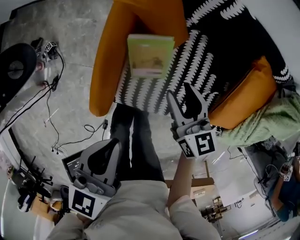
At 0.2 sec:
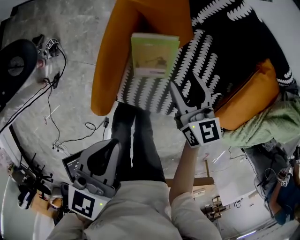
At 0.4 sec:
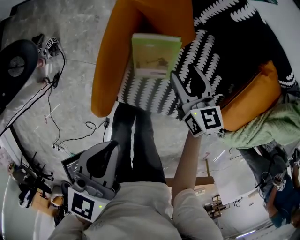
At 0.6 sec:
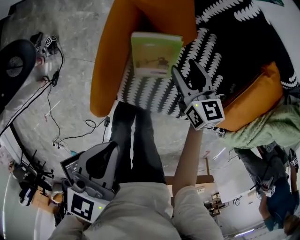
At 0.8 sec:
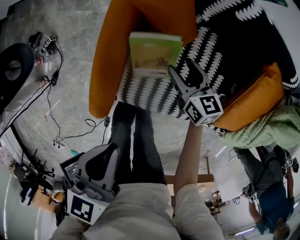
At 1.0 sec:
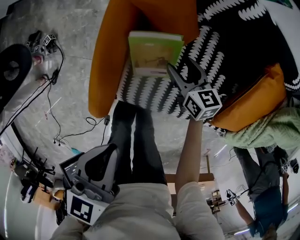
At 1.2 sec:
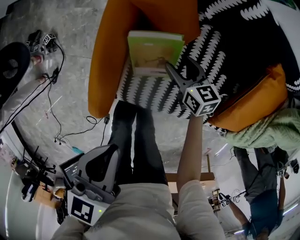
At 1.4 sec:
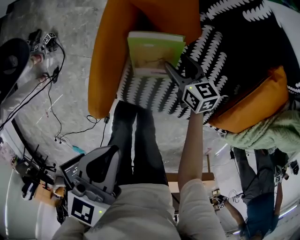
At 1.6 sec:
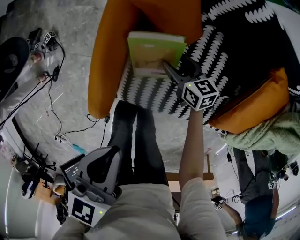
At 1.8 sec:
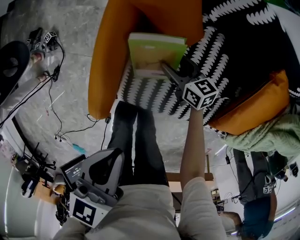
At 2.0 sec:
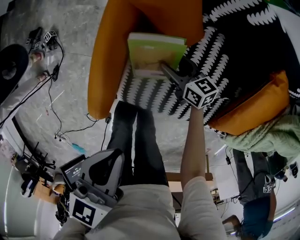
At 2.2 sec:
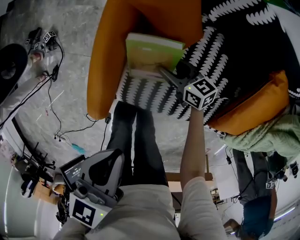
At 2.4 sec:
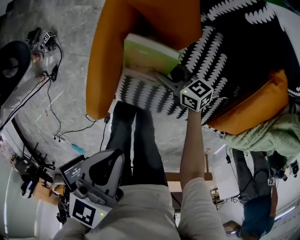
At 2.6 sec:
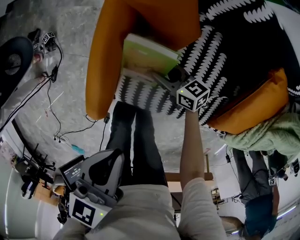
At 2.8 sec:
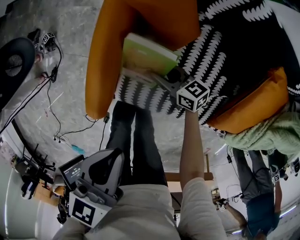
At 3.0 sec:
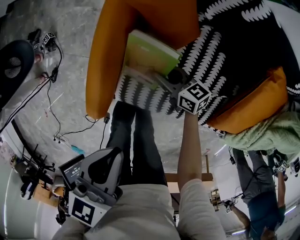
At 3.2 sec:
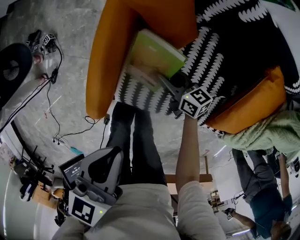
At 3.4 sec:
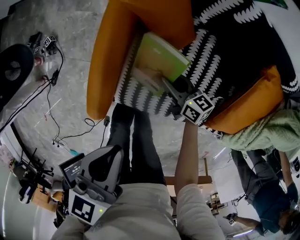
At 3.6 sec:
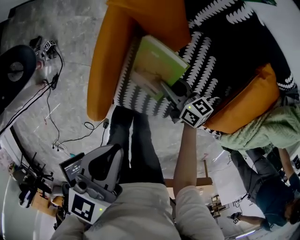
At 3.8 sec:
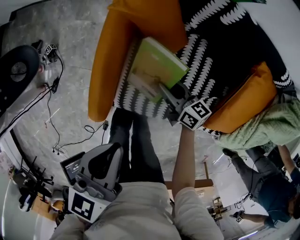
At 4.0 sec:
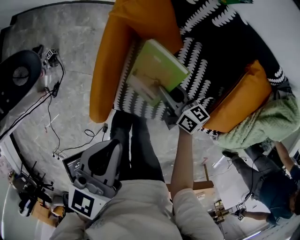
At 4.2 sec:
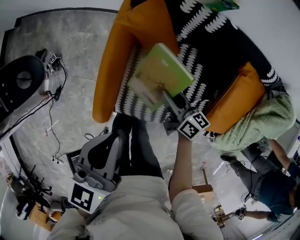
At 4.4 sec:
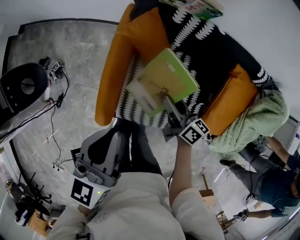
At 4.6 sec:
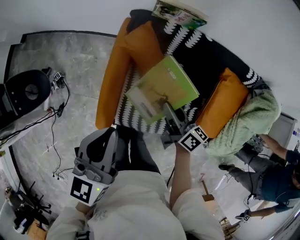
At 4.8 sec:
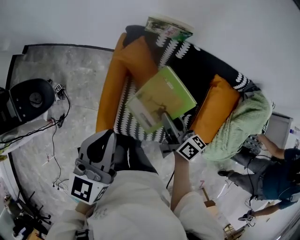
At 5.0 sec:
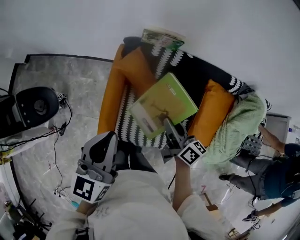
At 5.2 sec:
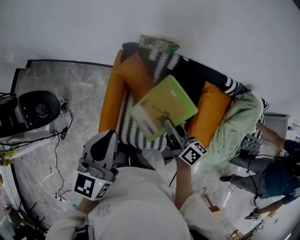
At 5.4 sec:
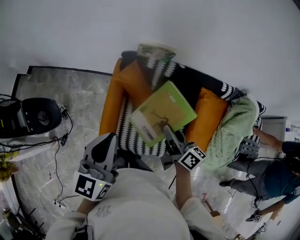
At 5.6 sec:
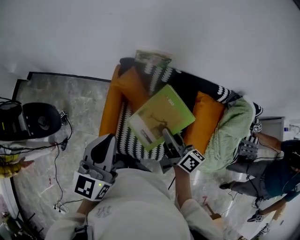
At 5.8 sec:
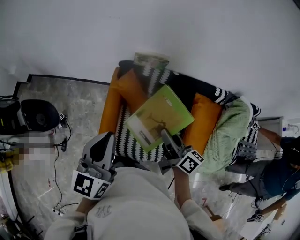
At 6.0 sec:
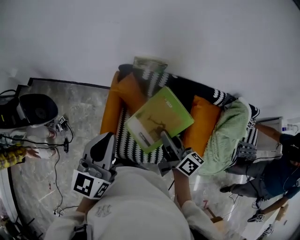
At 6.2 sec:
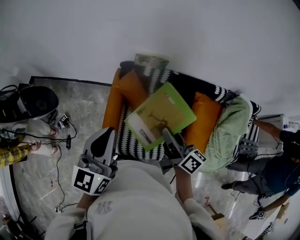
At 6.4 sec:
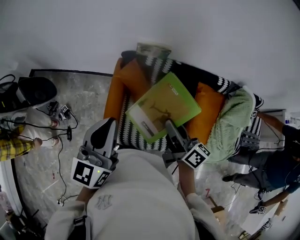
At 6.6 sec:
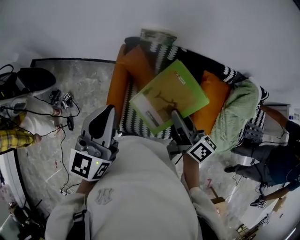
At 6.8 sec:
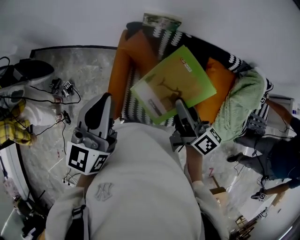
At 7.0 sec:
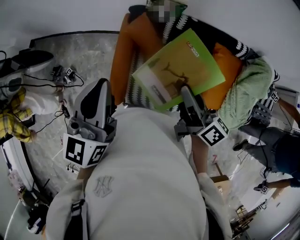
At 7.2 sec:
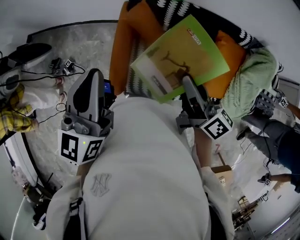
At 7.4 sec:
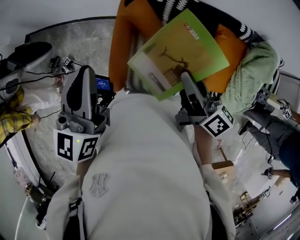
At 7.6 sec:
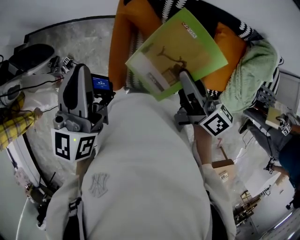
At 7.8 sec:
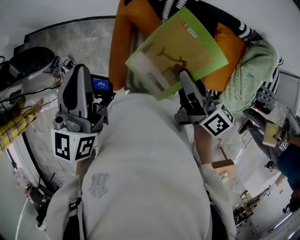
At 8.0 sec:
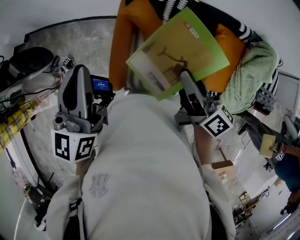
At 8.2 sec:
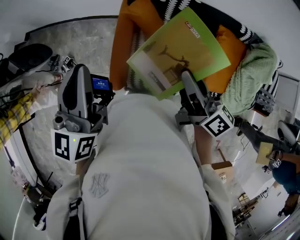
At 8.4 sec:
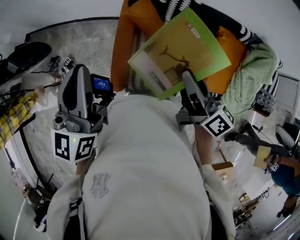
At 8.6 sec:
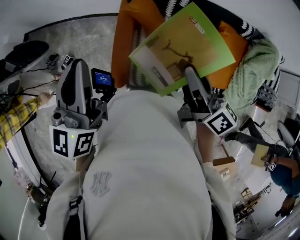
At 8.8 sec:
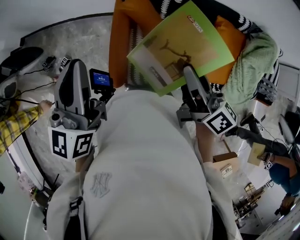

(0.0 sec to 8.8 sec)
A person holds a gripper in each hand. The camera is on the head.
0.0 sec - 1.4 sec: The right gripper is displaced downward by roughly 20 cm, and turns by roughly 20 degrees.
1.4 sec - 3.0 sec: The right gripper closes up.
3.0 sec - 4.4 sec: The left gripper shifts approximately 10 cm upward, and turns by approximately 20 degrees. The right gripper travels upward by about 20 cm, and rotates about 40 degrees.
4.4 sec - 5.8 sec: The left gripper goes roughly 15 cm upward; the right gripper goes roughly 25 cm upward.
5.8 sec - 7.4 sec: The right gripper goes about 5 cm backward and upward, while the left gripper travels to the left by roughly 10 cm.
7.4 sec - 8.8 sec: There are only small adjustments of the grippers.

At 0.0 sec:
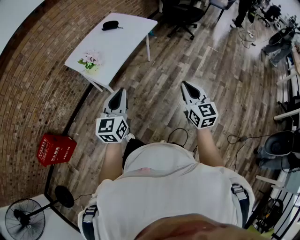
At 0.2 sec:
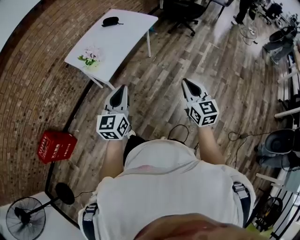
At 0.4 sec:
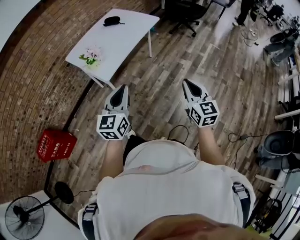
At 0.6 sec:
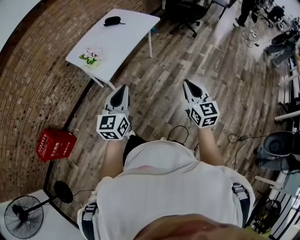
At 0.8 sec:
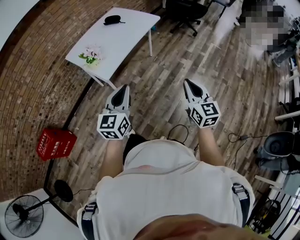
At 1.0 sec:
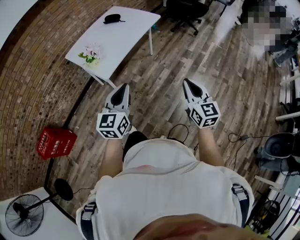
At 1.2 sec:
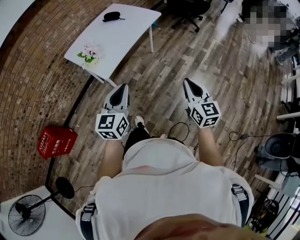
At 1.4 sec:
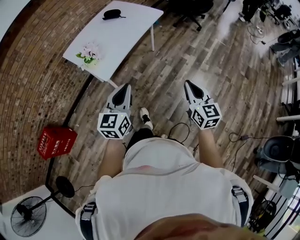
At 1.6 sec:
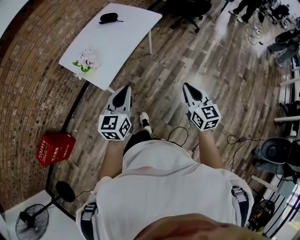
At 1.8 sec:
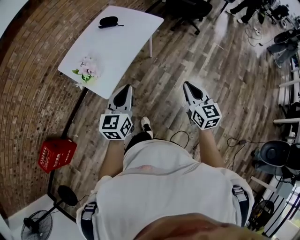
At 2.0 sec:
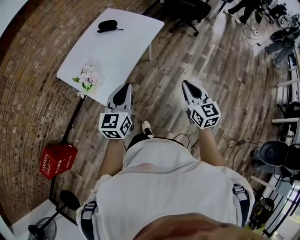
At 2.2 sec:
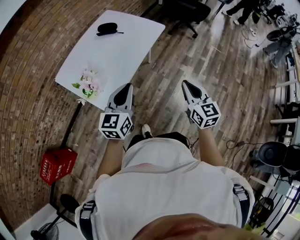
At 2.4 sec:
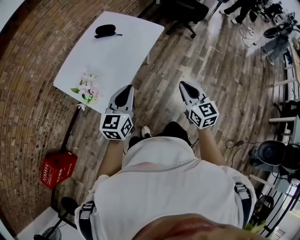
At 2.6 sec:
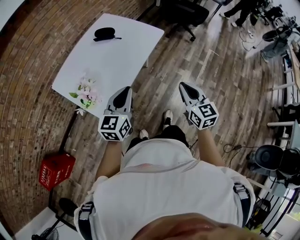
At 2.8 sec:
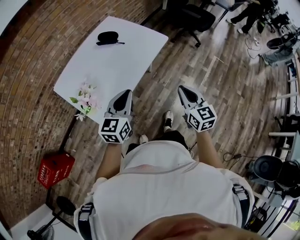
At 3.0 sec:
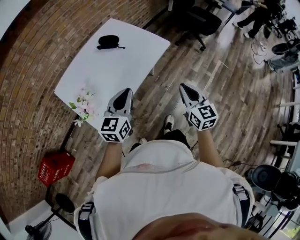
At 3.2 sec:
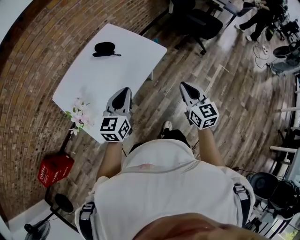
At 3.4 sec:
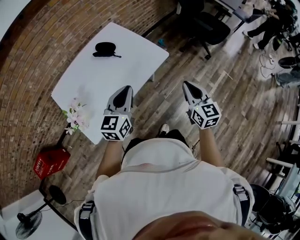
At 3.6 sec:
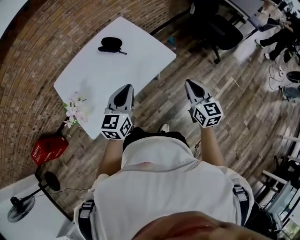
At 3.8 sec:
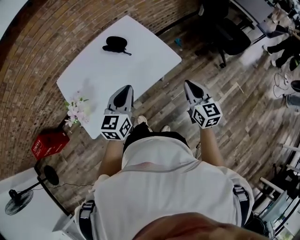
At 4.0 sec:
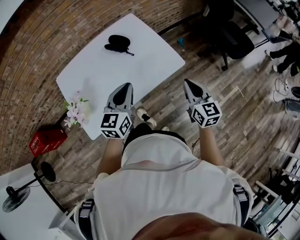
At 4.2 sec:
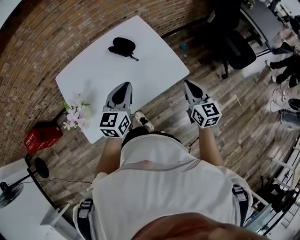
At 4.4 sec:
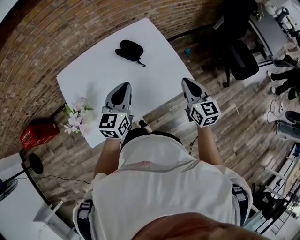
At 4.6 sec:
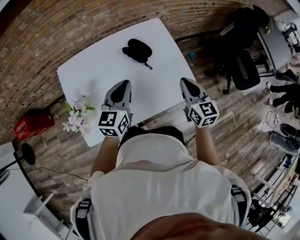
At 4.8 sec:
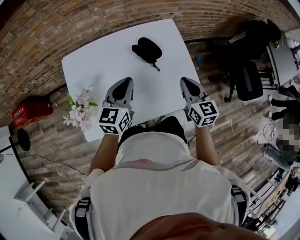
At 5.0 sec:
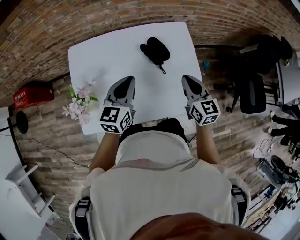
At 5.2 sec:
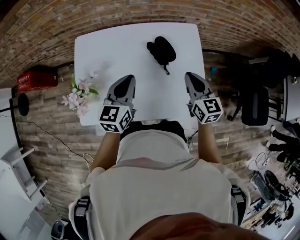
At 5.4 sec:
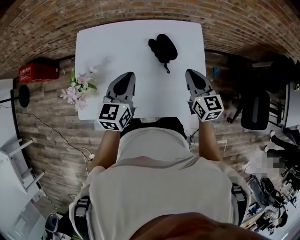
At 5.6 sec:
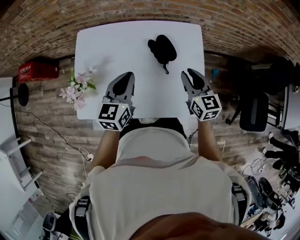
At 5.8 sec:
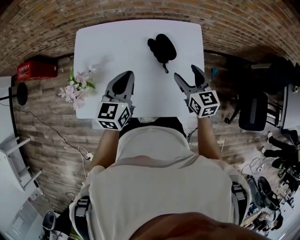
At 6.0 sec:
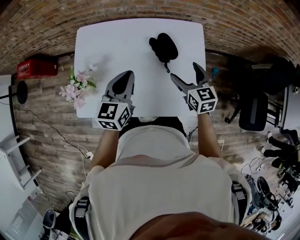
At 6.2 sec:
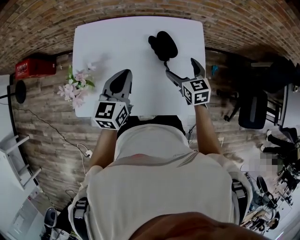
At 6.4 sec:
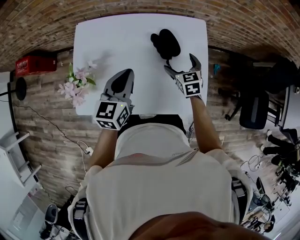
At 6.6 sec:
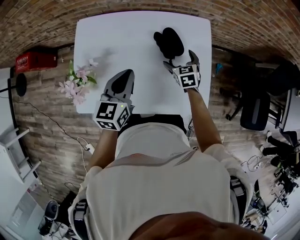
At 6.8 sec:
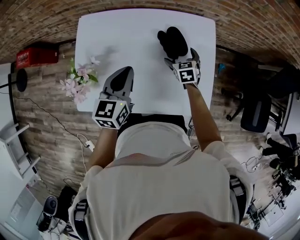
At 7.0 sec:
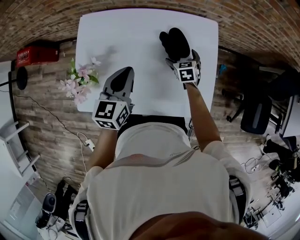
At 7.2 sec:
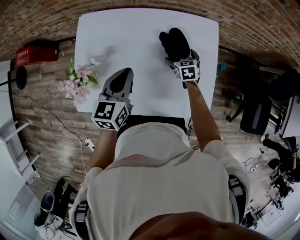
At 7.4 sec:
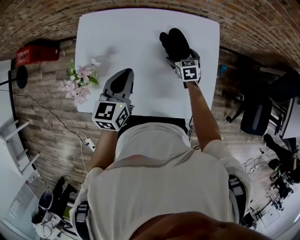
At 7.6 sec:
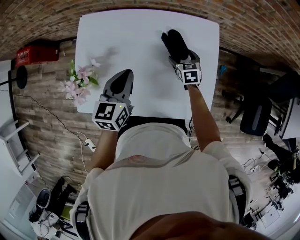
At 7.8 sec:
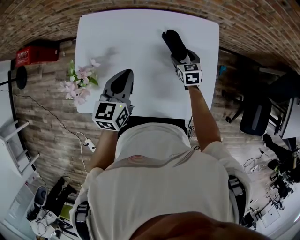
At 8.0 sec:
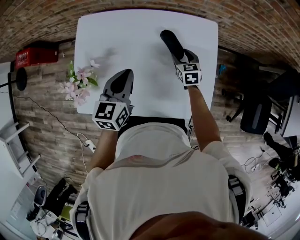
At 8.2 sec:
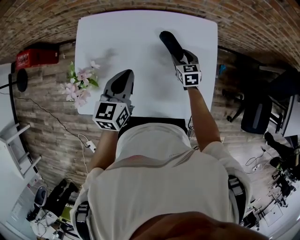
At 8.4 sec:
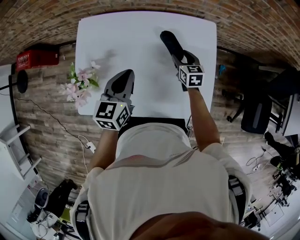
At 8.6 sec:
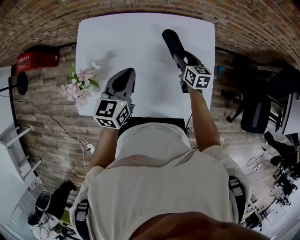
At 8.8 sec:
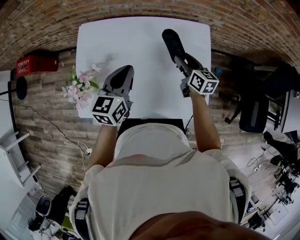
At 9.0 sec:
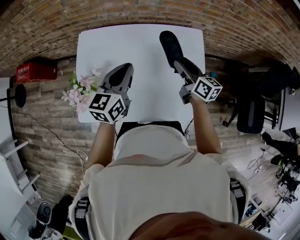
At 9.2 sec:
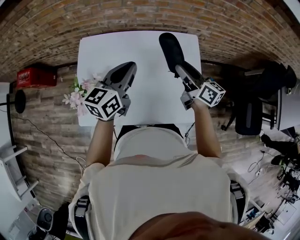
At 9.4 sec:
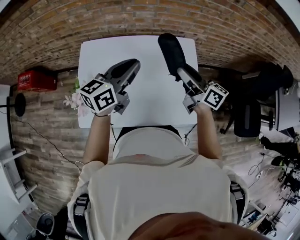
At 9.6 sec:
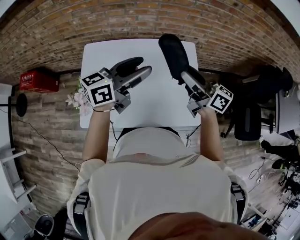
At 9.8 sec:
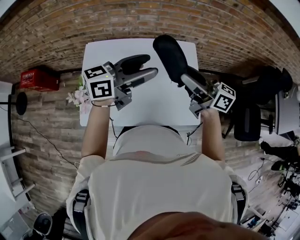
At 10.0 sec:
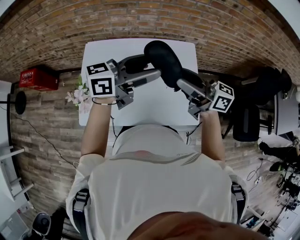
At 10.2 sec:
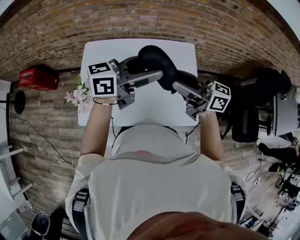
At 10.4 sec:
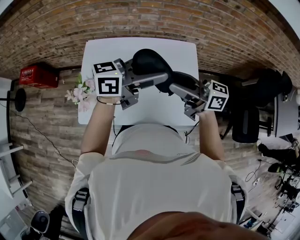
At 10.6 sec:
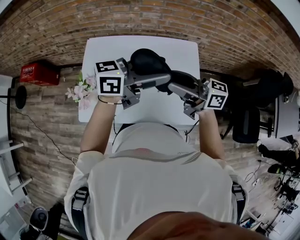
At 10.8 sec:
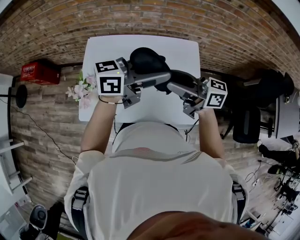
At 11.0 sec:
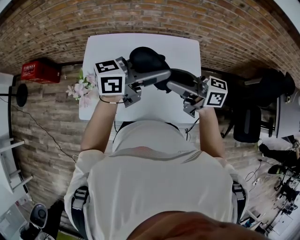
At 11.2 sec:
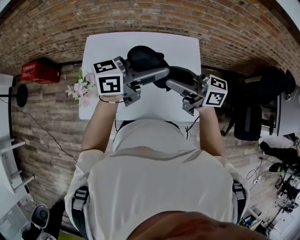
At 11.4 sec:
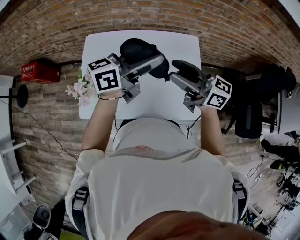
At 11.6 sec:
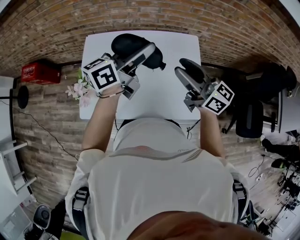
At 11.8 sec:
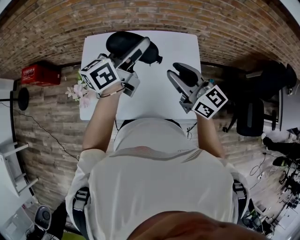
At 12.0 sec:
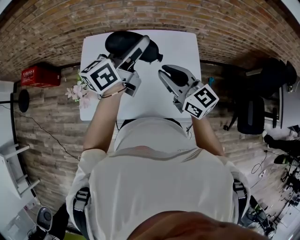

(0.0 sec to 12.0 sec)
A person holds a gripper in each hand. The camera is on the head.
0.0 sec - 1.6 sec: Both grippers travel together forward, approximately 10 cm.
1.6 sec - 3.0 sec: Both grippers travel together forward, some 30 cm.
3.0 sec - 4.4 sec: Both grippers travel together forward, approximately 30 cm. The right gripper swivels roughly 20 degrees. Meanwhile the left gripper turns by some 30 degrees.
4.4 sec - 6.0 sec: The left gripper shifts by approximately 10 cm, and turns by some 30 degrees; the right gripper ends up approximately 20 cm from where it was, turns by some 30 degrees, and opens up.
6.0 sec - 7.6 sec: The left gripper shifts by some 5 cm; the right gripper shifts roughly 20 cm downward and forward.
7.6 sec - 9.0 sec: The left gripper travels upward by about 5 cm. The right gripper moves upward, some 20 cm, and tips its fingers upward by about 30 degrees.
9.0 sec - 10.4 sec: The two grippers go roughly 15 cm upward. The left gripper swivels approximately 50 degrees, and opens. The right gripper rotates approximately 40 degrees.
10.4 sec - 12.0 sec: The left gripper shifts by approximately 10 cm, and turns by some 30 degrees; the right gripper changes its angle by some 40 degrees.

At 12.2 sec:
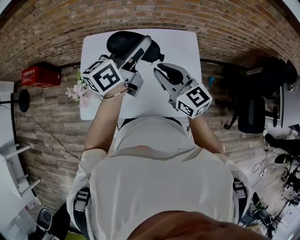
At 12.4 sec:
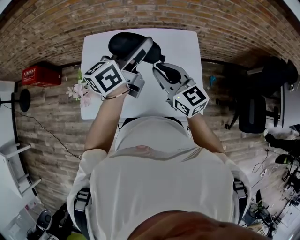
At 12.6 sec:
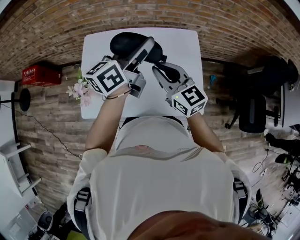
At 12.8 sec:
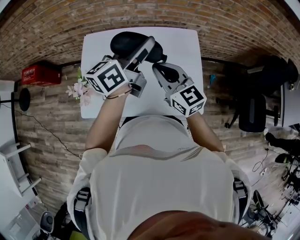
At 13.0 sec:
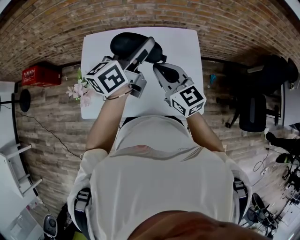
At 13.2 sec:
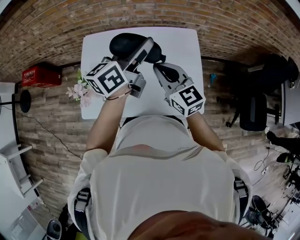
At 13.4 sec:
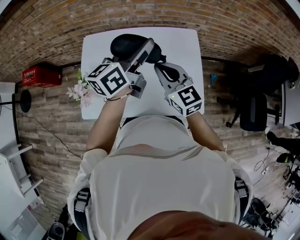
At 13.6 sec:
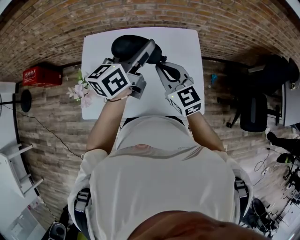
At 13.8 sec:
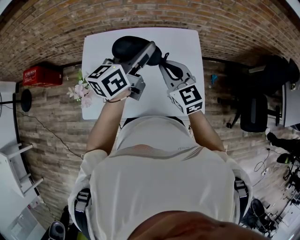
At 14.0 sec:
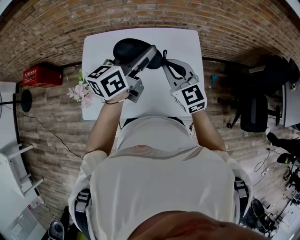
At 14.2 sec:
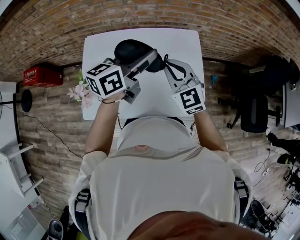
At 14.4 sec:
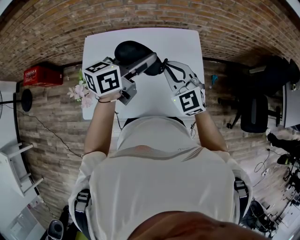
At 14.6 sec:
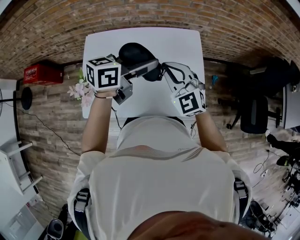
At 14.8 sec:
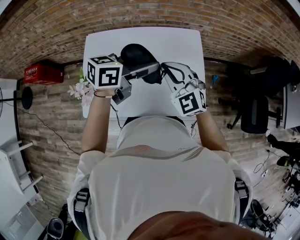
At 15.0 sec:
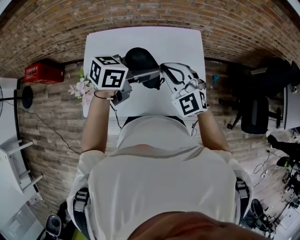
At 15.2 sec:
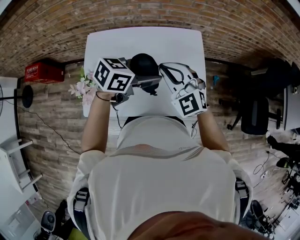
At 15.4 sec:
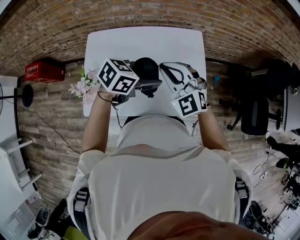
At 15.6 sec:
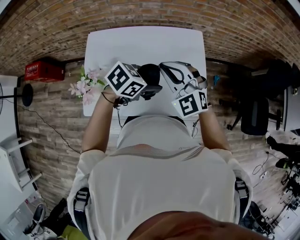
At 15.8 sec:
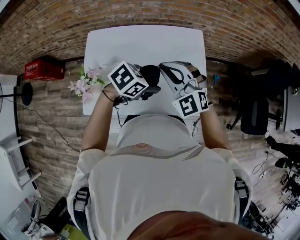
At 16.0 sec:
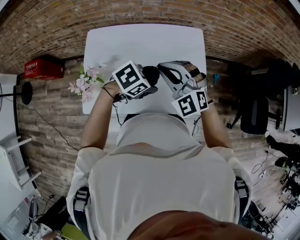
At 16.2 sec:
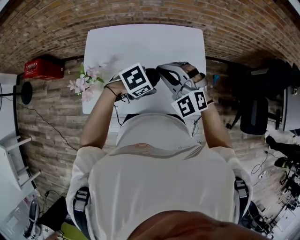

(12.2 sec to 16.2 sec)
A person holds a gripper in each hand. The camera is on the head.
12.2 sec - 13.6 sec: The grippers stay close to where they were, moving slightly.
13.6 sec - 14.8 sec: The left gripper moves downward, approximately 5 cm, and turns by about 30 degrees; the right gripper turns by approximately 30 degrees.
14.8 sec - 16.2 sec: The left gripper moves downward, some 15 cm, and tilts its fingers approximately 50 degrees downward. Meanwhile the right gripper rotates roughly 20 degrees.
